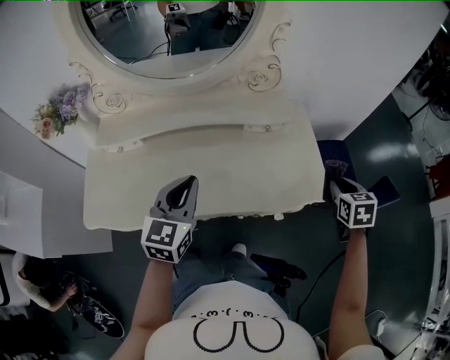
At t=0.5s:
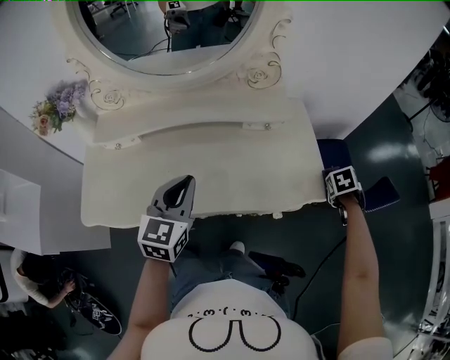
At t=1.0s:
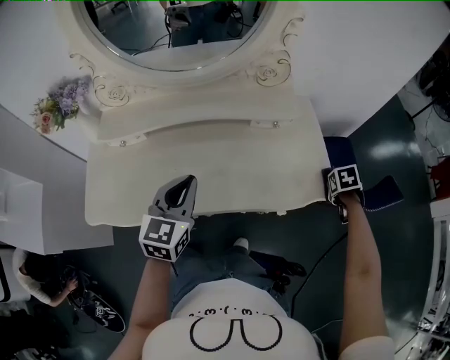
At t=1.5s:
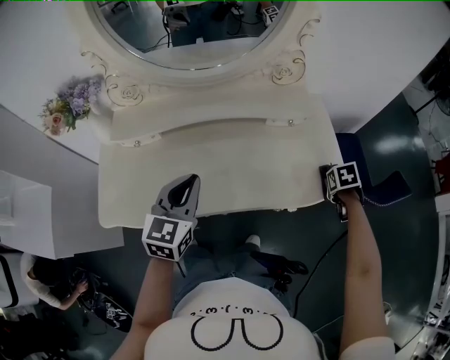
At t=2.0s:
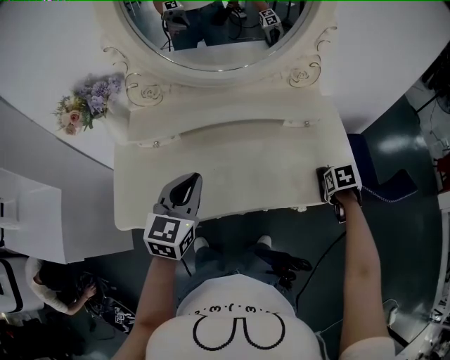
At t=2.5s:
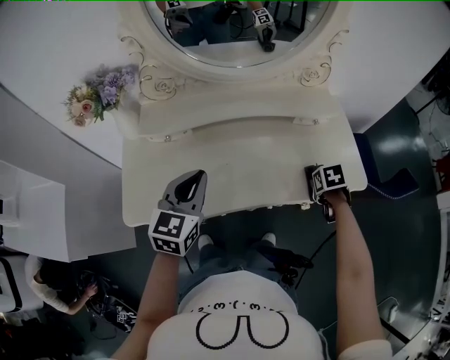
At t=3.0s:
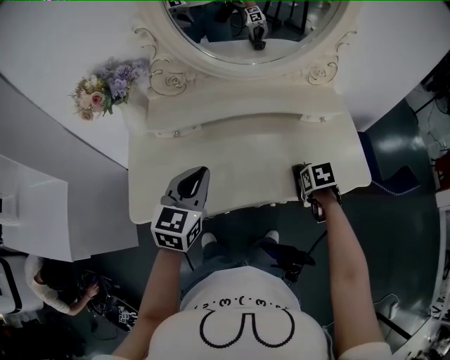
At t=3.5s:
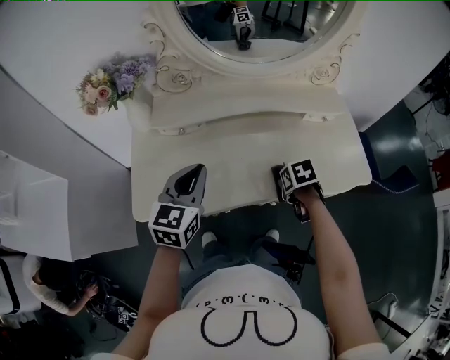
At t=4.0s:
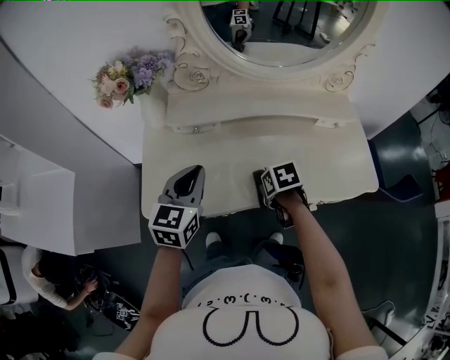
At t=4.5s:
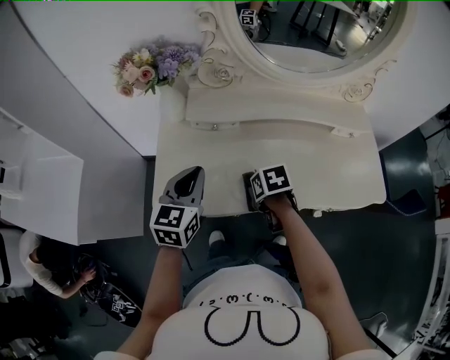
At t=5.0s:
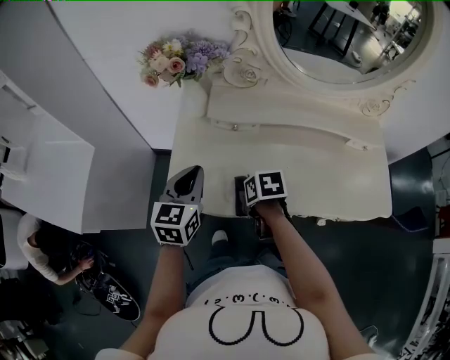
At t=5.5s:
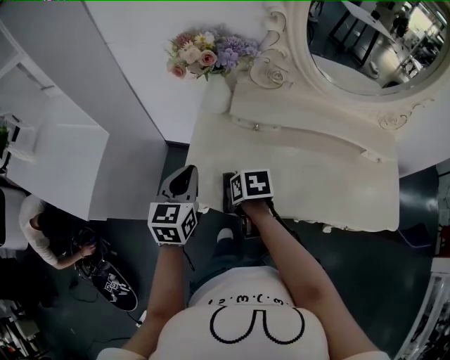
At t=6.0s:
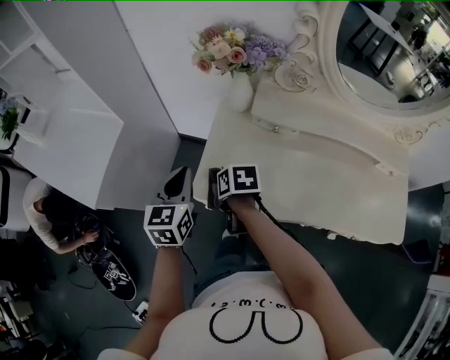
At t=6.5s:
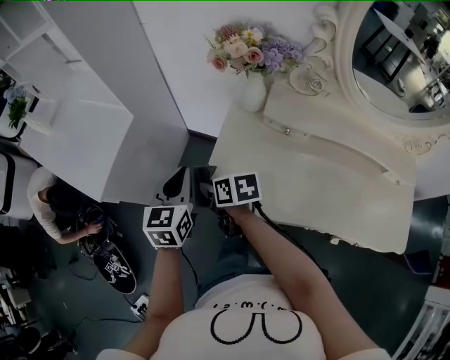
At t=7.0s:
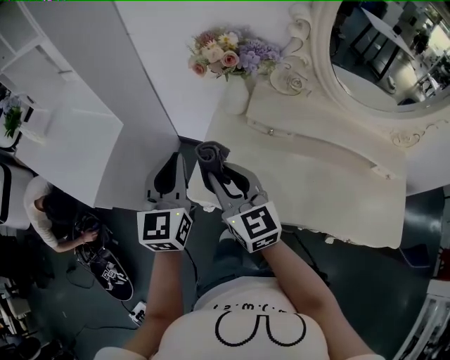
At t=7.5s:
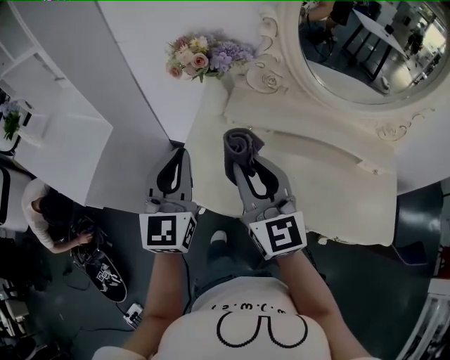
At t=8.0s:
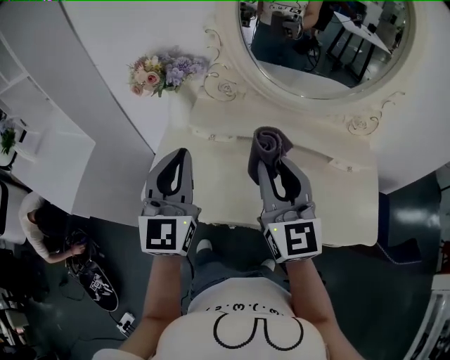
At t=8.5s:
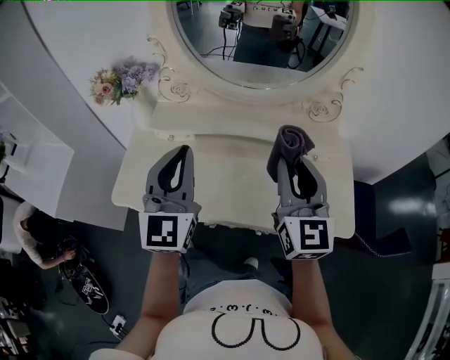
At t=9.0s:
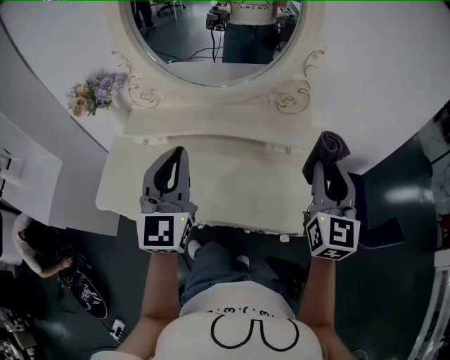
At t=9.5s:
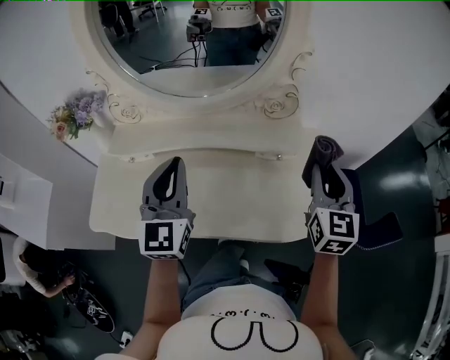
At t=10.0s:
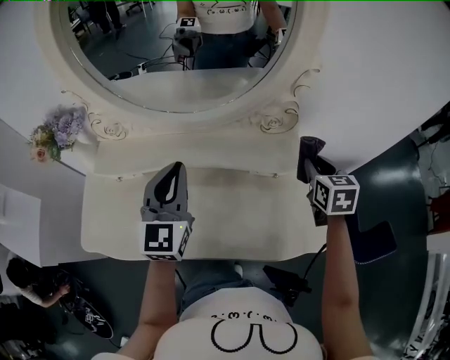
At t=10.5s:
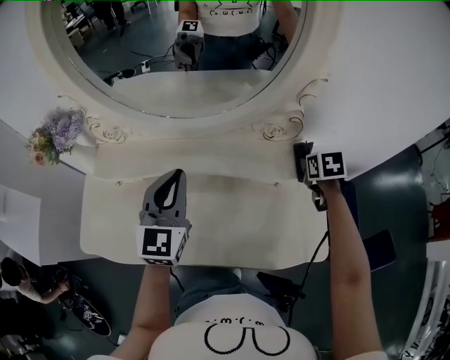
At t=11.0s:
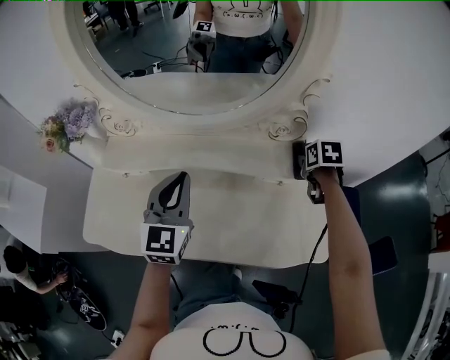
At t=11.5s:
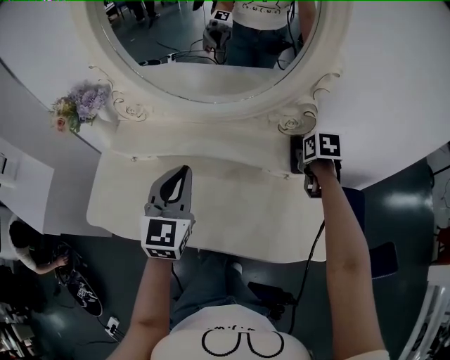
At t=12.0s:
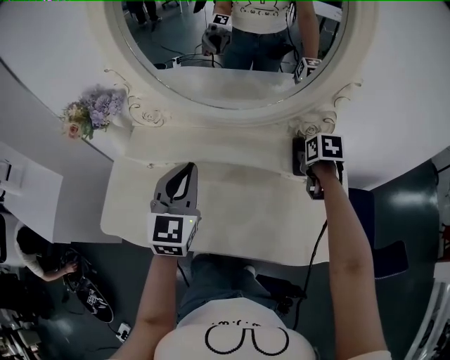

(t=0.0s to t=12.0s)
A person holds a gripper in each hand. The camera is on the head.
t=0.0s - t=2.0s: The right gripper changes place by about 15 cm, and swivels about 30 degrees. The left gripper moves approximately 15 cm.
t=2.0s - t=4.0s: The left gripper ends up approximately 15 cm from where it was. Meanwhile the right gripper changes place by some 40 cm.
t=4.0s - t=6.0s: The right gripper ends up some 35 cm from where it was, and changes its angle by approximately 20 degrees. The left gripper changes place by approximately 25 cm, and swivels some 30 degrees.
t=6.0s - t=8.0s: The right gripper moves upward, approximately 30 cm, and tips its fingers upward by some 60 degrees. Meanwhile the left gripper shifts by approximately 30 cm, and changes its angle by about 30 degrees.
t=8.0s - t=10.0s: The left gripper travels to the right and forward by about 30 cm. Meanwhile the right gripper heads to the right, covering some 50 cm, and tips its fingers downward by about 40 degrees.
t=10.0s - t=12.0s: The right gripper is displaced to the left, downward and forward by about 15 cm, and changes its angle by roughly 30 degrees. Meanwhile the left gripper shifts roughly 5 cm to the left.

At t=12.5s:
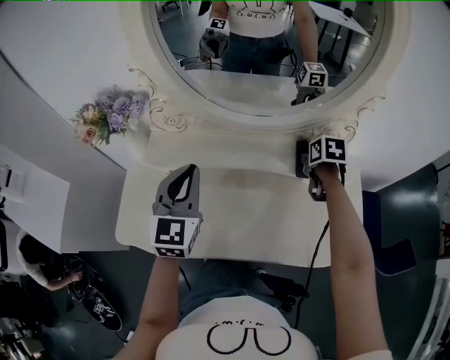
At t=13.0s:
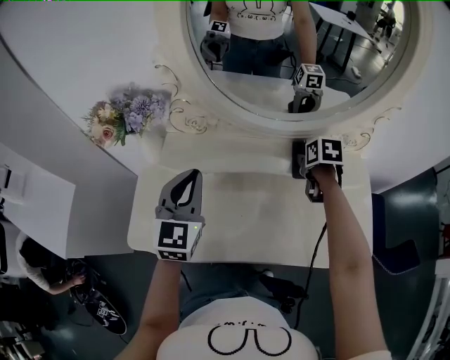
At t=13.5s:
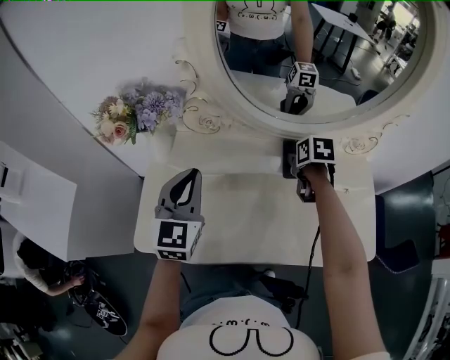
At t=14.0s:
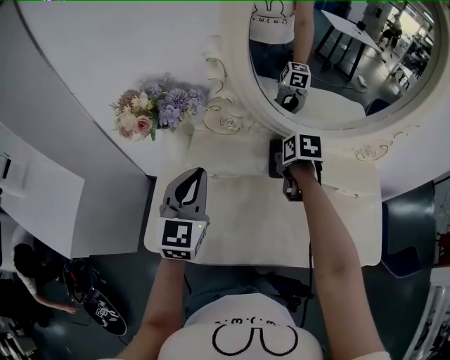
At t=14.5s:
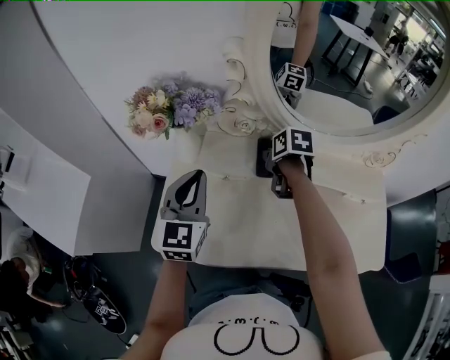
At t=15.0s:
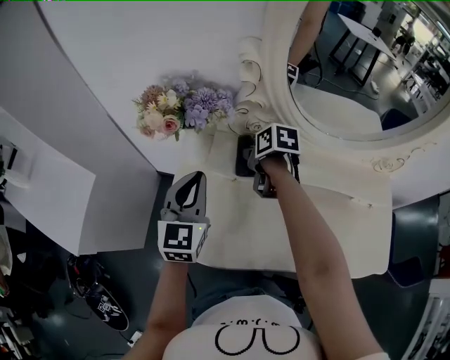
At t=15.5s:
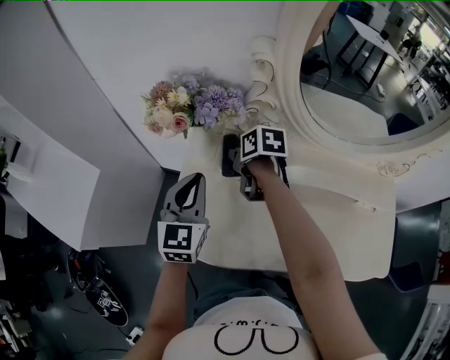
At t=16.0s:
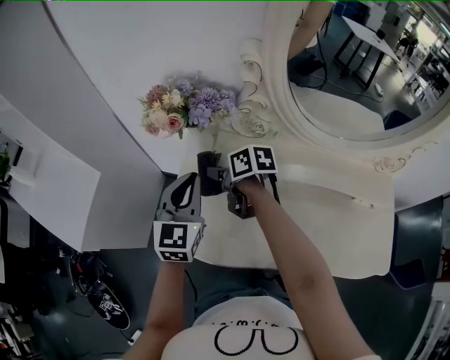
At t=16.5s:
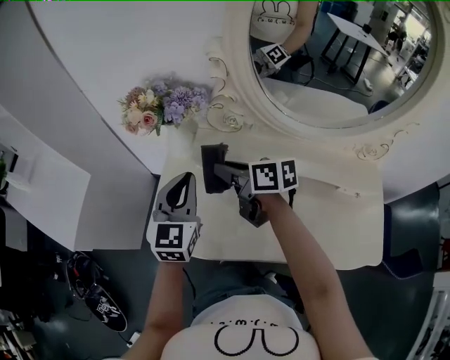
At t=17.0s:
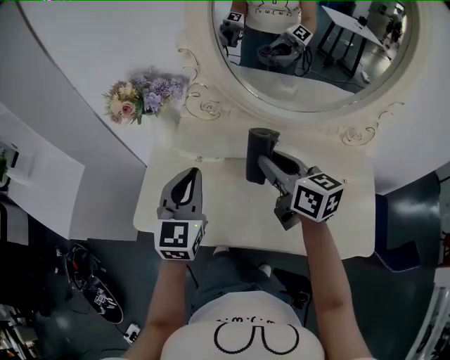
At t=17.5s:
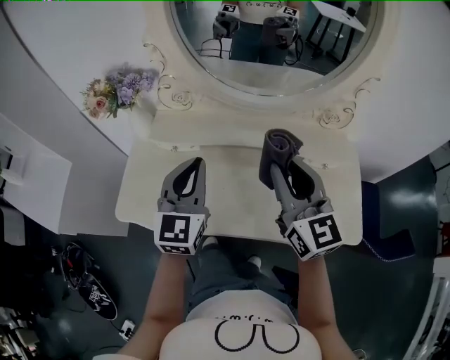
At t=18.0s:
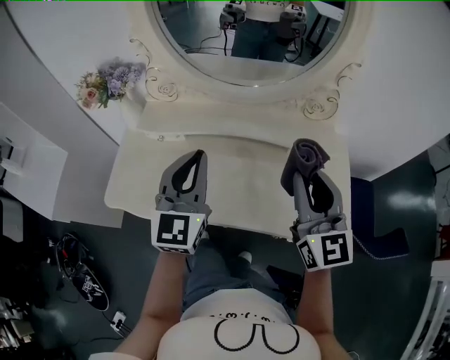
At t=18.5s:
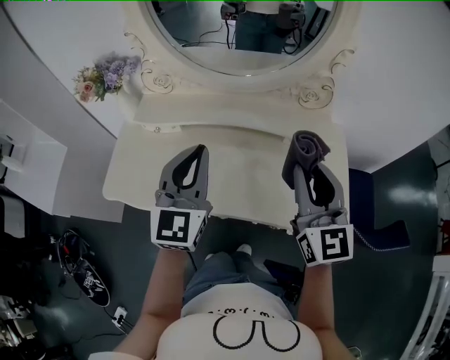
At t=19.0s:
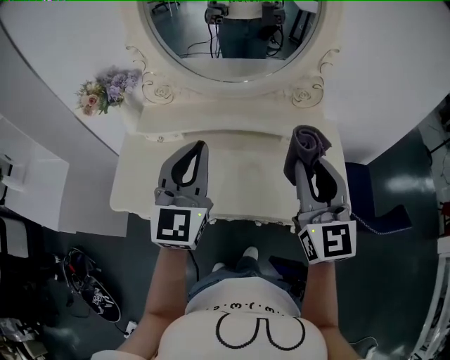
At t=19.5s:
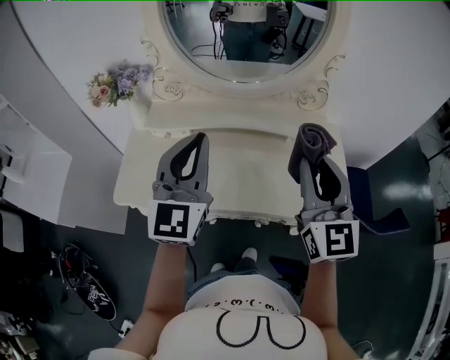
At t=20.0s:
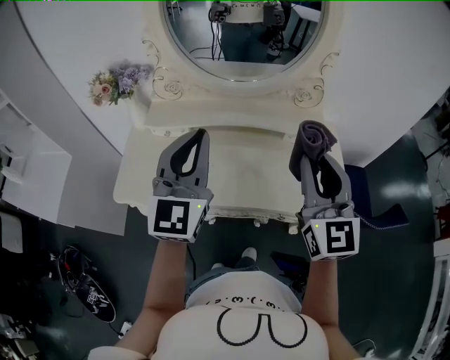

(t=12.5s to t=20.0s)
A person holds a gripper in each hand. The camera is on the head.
t=12.5s - t=14.5s: The right gripper heads to the left, covering some 35 cm. Meanwhile the left gripper goes some 20 cm to the left.
t=14.5s - t=16.5s: The right gripper is displaced to the left and upward by about 15 cm, and tips its fingers upward by approximately 40 degrees.
t=16.5s - t=18.0s: The right gripper shifts by some 50 cm, and changes its angle by about 70 degrees, while the left gripper moves some 30 cm.
t=18.0s - t=20.0s: The right gripper heads backward and upward, covering some 10 cm; the left gripper moves upward and backward, approximately 10 cm.

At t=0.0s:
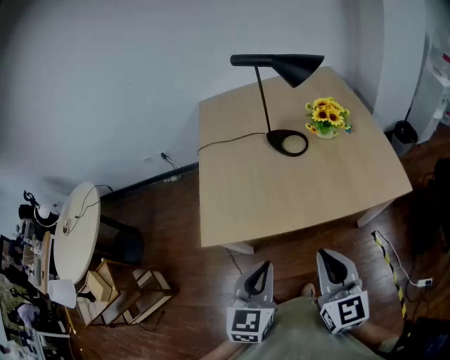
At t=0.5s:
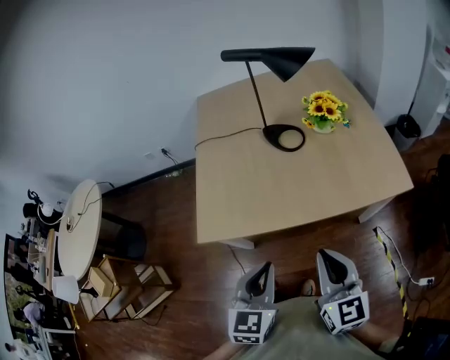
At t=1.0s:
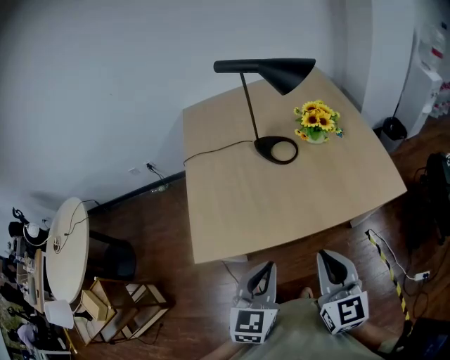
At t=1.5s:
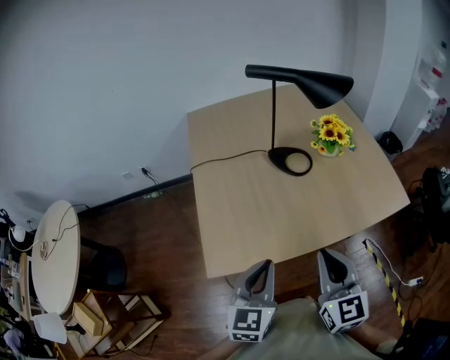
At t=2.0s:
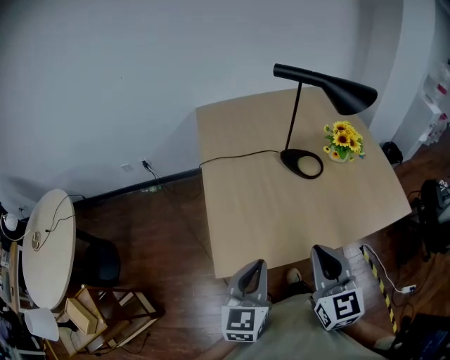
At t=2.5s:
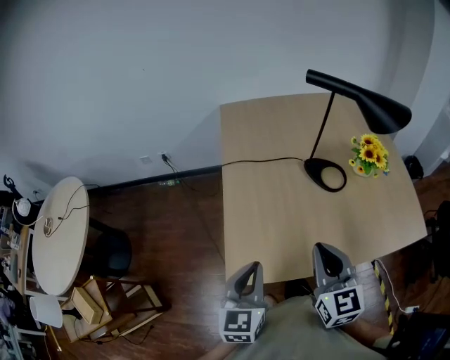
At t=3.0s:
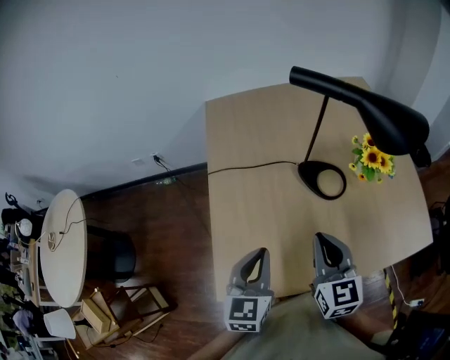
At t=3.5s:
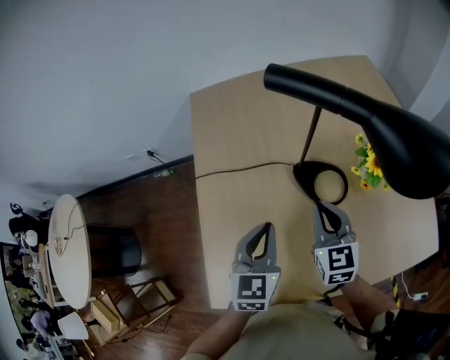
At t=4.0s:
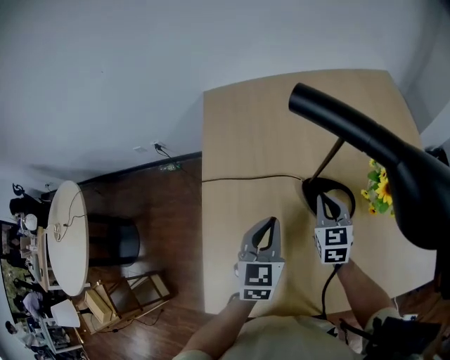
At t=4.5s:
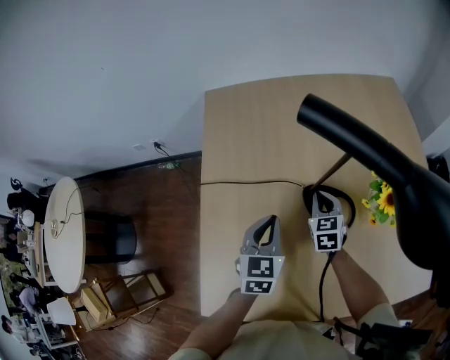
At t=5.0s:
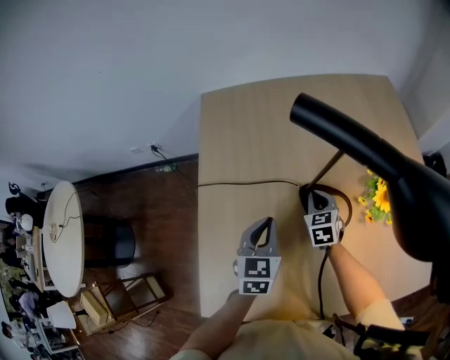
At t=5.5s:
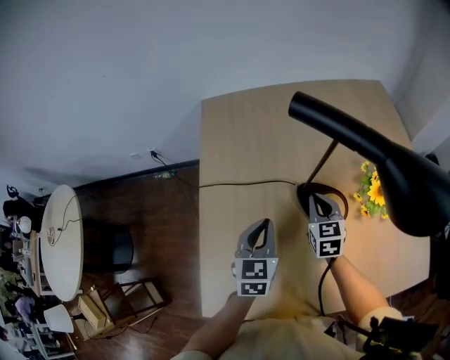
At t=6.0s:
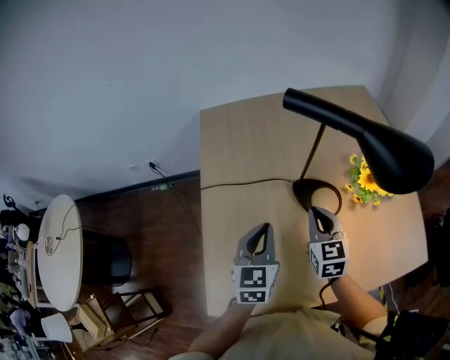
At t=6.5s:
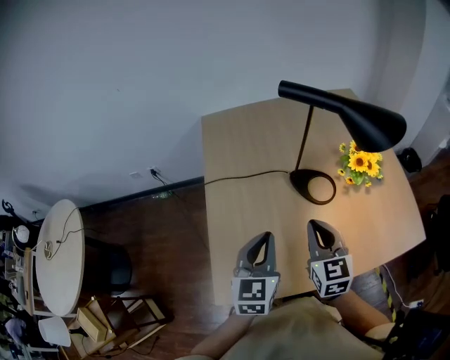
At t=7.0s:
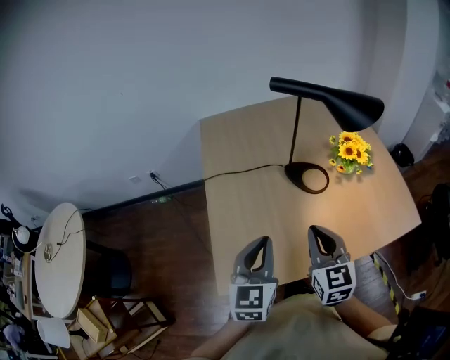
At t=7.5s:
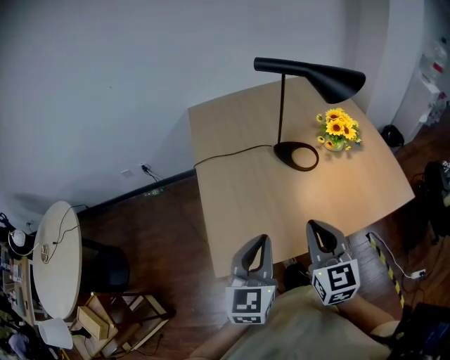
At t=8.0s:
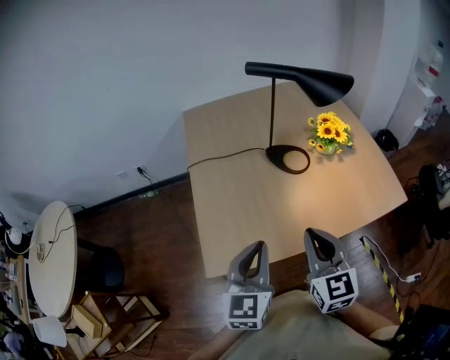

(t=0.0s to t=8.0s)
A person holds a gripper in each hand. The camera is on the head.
t=0.0s - t=2.0s: The two grippers go roughly 20 cm to the left and forward.
t=2.0s - t=4.0s: The right gripper moves forward and downward, about 40 cm, while the left gripper shifts about 35 cm forward.
t=4.0s - t=6.0s: The left gripper shifts by some 5 cm, while the right gripper goes some 10 cm backward and upward.
t=6.0s - t=8.0s: Both grippers travel together backward, approximately 30 cm.
